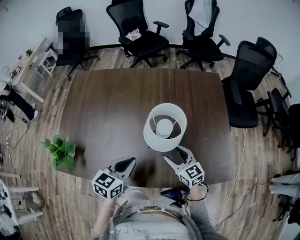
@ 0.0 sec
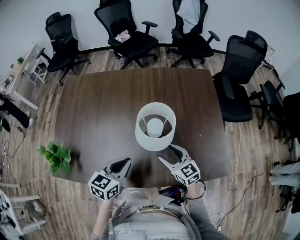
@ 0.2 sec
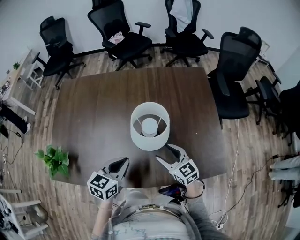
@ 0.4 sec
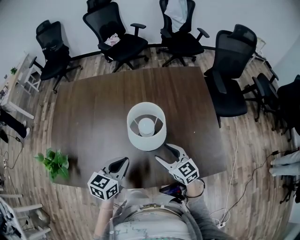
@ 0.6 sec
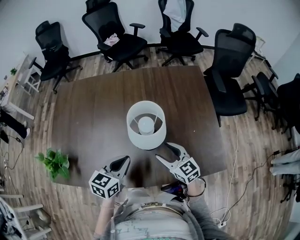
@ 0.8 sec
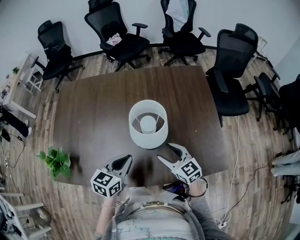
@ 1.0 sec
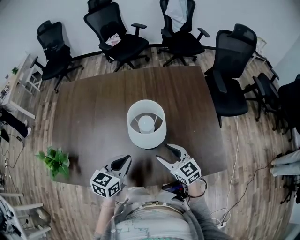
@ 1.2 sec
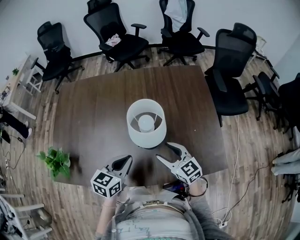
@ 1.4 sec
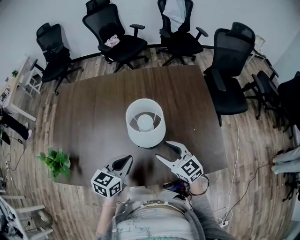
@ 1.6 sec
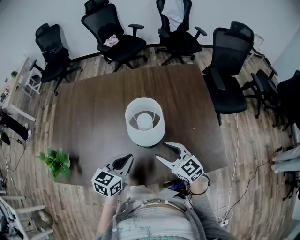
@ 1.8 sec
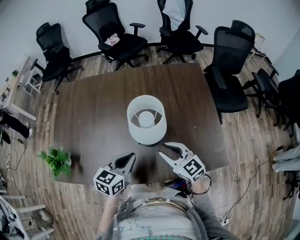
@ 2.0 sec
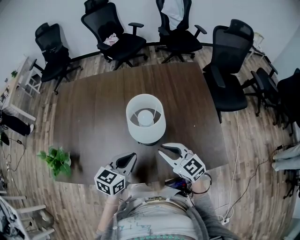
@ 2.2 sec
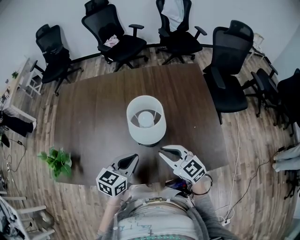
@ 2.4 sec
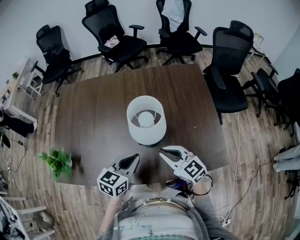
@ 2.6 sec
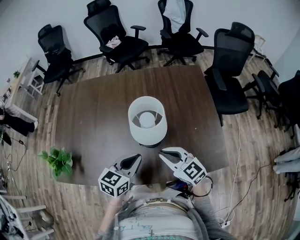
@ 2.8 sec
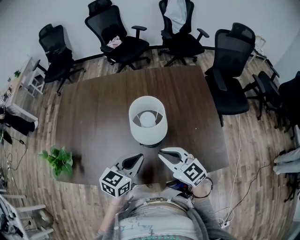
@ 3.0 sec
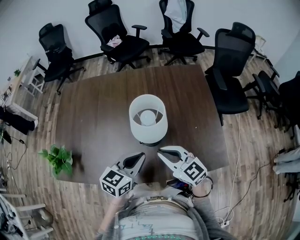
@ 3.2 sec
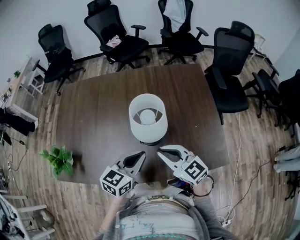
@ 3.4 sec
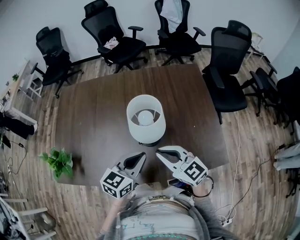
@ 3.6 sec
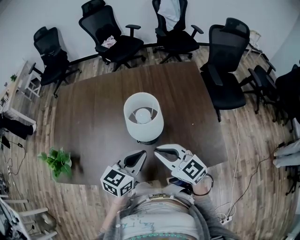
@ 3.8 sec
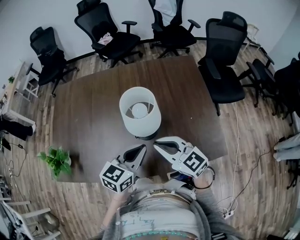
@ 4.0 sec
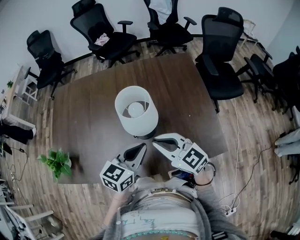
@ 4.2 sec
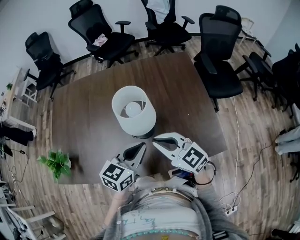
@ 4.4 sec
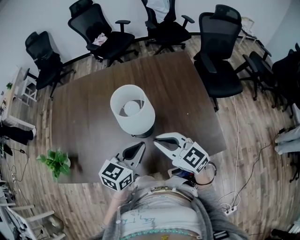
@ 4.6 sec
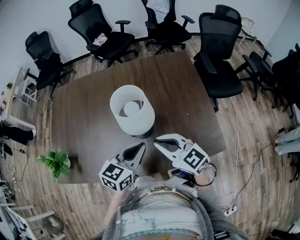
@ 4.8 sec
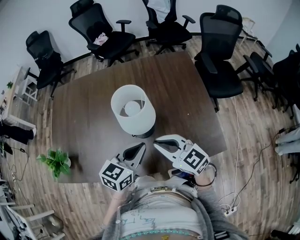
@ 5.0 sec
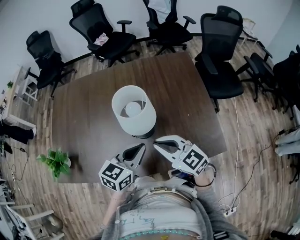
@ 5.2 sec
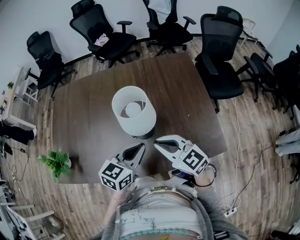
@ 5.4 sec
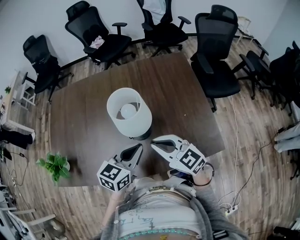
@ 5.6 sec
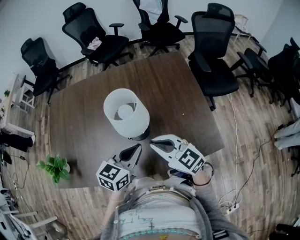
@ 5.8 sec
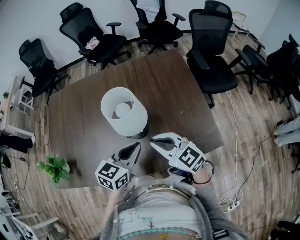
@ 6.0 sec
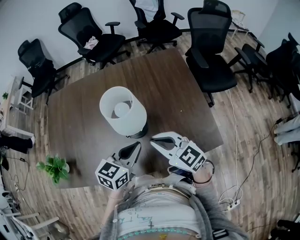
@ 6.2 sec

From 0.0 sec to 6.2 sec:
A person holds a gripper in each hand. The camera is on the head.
From 0.0 sec to 1.6 sec: The right gripper is displaced upward by some 5 cm.
From 1.6 sec to 3.2 sec: The left gripper ends up about 5 cm from where it was, while the right gripper goes some 5 cm upward, and closes its fingers.
From 3.2 sec to 4.6 sec: There are only small adjustments of the grippers.
From 4.6 sec to 6.2 sec: Neither gripper changes place.

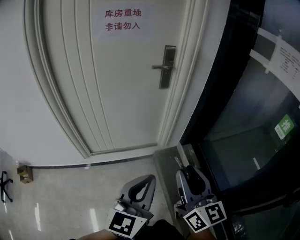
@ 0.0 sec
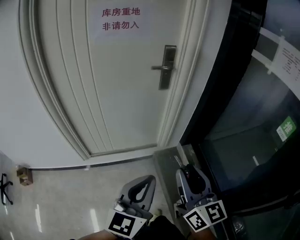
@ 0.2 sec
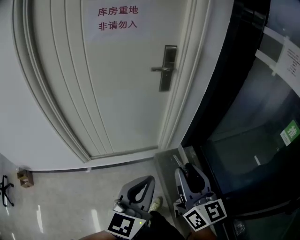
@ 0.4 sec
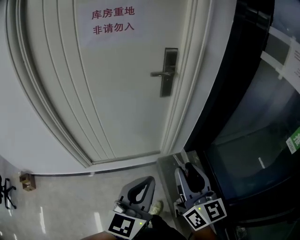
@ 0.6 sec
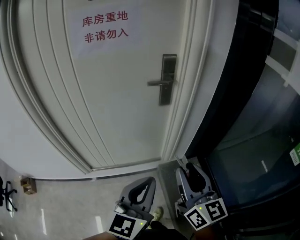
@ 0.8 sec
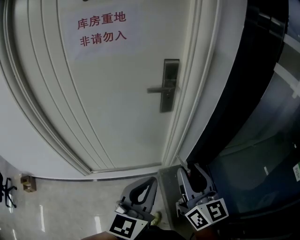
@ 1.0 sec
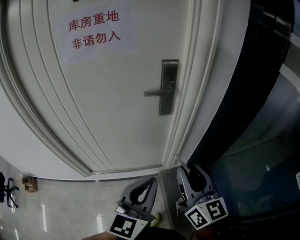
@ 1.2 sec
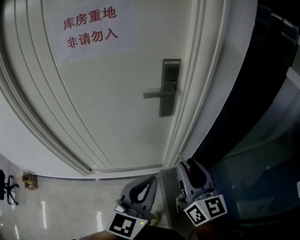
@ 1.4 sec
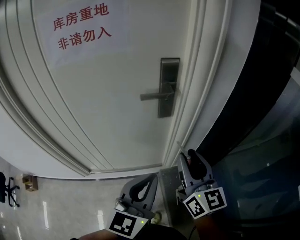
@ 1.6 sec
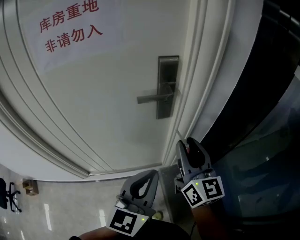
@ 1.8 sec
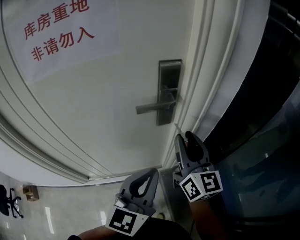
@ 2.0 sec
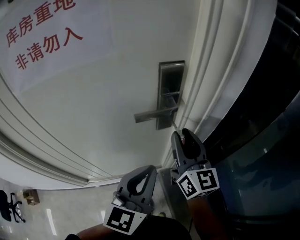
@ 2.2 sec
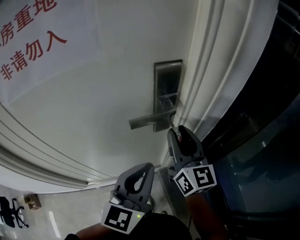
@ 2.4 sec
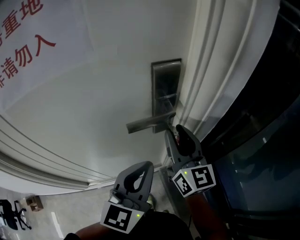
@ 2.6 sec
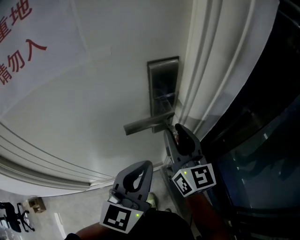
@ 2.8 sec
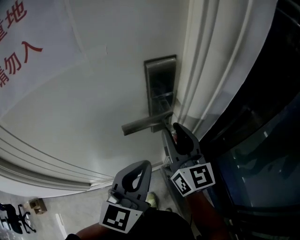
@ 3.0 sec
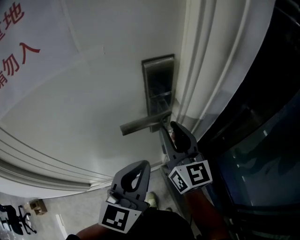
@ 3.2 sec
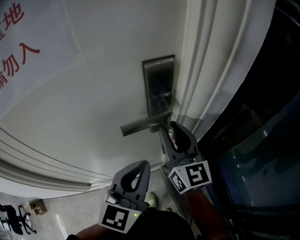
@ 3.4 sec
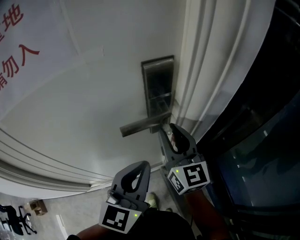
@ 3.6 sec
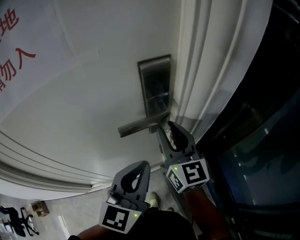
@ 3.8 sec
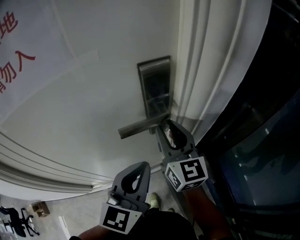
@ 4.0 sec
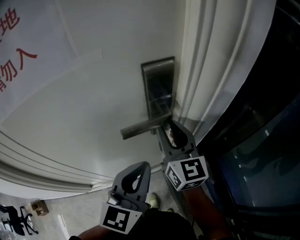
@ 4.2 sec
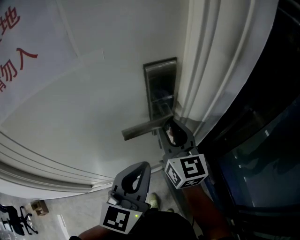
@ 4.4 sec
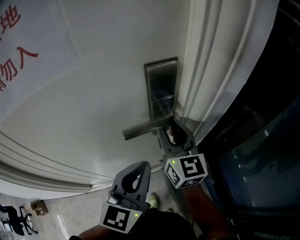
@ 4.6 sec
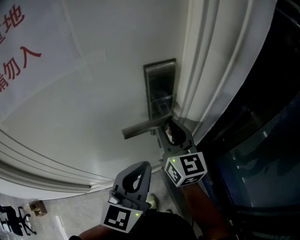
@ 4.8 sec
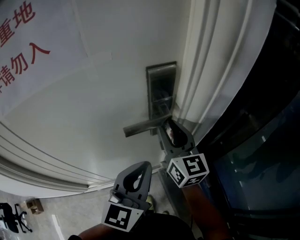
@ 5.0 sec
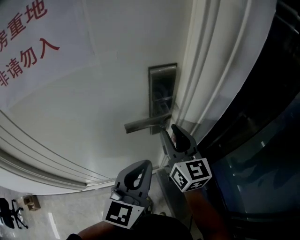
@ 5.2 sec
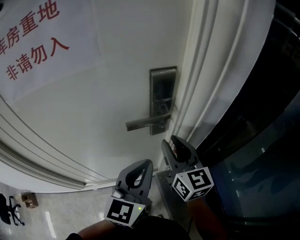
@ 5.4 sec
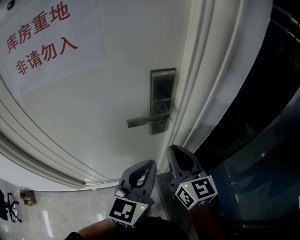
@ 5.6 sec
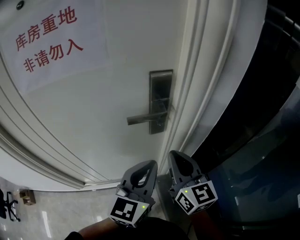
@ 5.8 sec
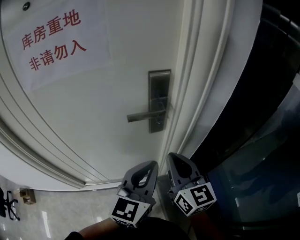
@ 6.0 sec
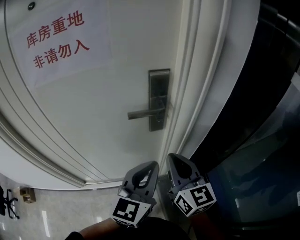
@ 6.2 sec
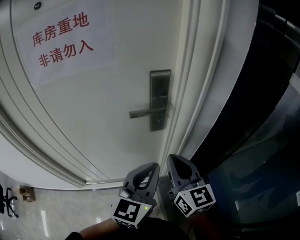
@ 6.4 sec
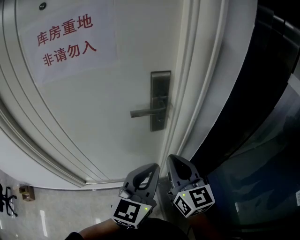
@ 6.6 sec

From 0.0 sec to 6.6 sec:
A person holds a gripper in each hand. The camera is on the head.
From 0.0 sec to 1.6 sec: Both grippers move forward, some 35 cm.
From 1.6 sec to 3.2 sec: The grippers both shift forward by about 20 cm.
From 3.2 sec to 5.0 sec: The grippers move only a little.
From 5.0 sec to 6.6 sec: The left gripper is displaced backward by roughly 10 cm. The right gripper travels backward by approximately 20 cm, and closes its fingers.

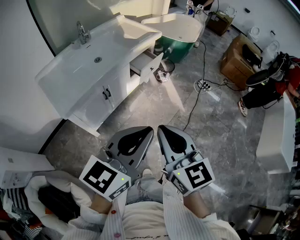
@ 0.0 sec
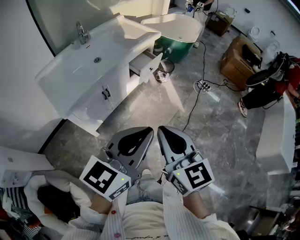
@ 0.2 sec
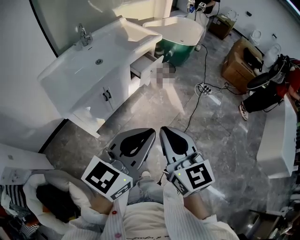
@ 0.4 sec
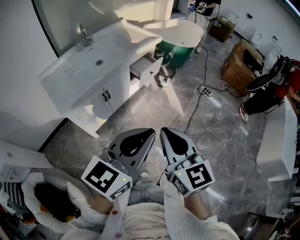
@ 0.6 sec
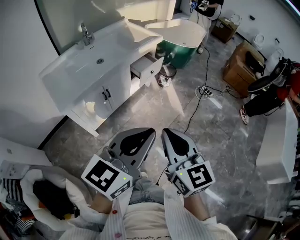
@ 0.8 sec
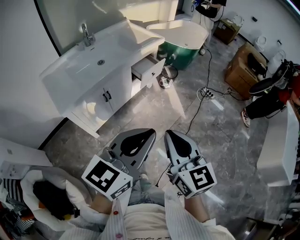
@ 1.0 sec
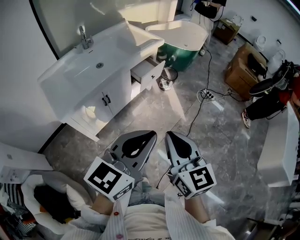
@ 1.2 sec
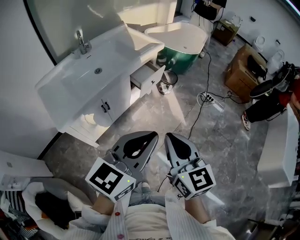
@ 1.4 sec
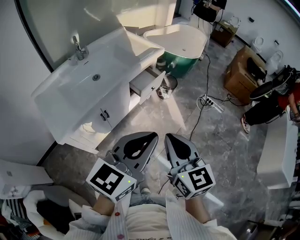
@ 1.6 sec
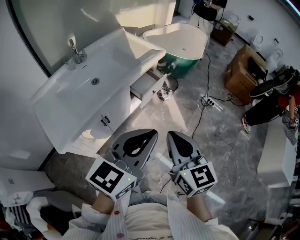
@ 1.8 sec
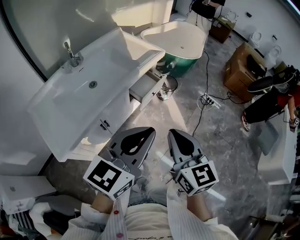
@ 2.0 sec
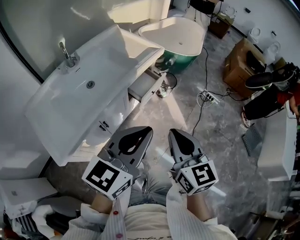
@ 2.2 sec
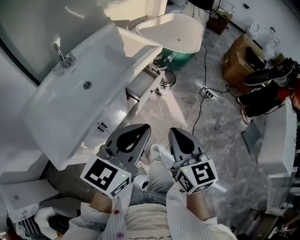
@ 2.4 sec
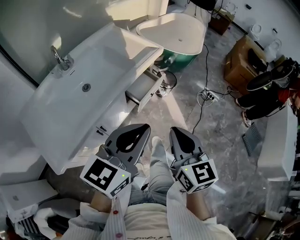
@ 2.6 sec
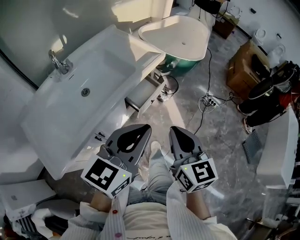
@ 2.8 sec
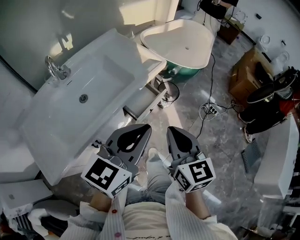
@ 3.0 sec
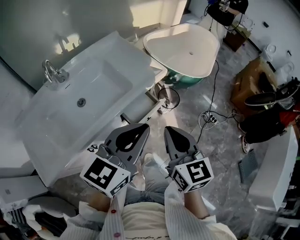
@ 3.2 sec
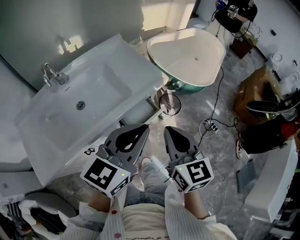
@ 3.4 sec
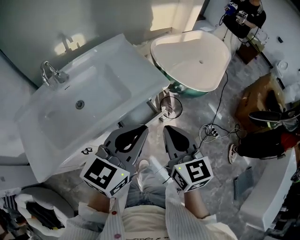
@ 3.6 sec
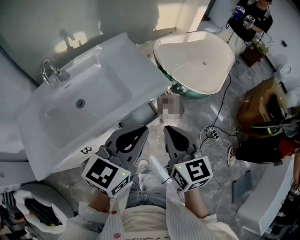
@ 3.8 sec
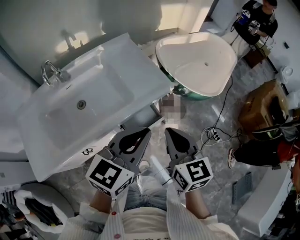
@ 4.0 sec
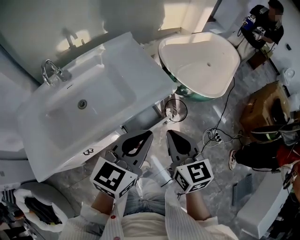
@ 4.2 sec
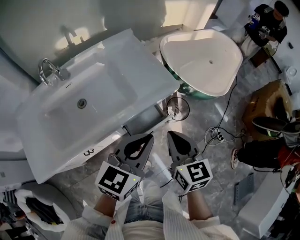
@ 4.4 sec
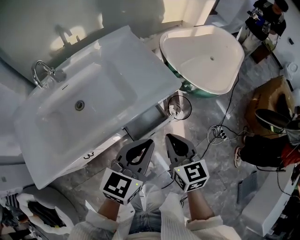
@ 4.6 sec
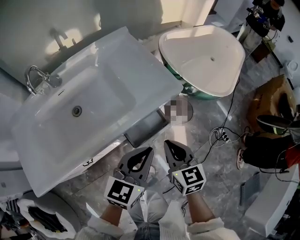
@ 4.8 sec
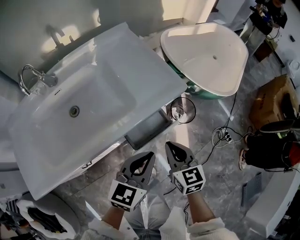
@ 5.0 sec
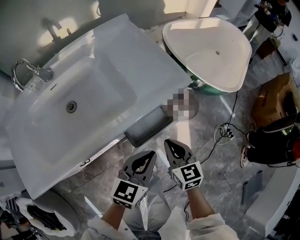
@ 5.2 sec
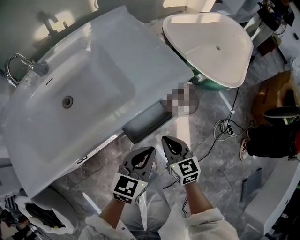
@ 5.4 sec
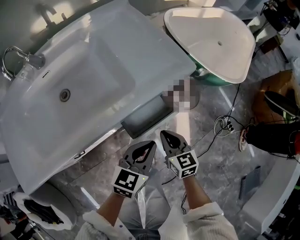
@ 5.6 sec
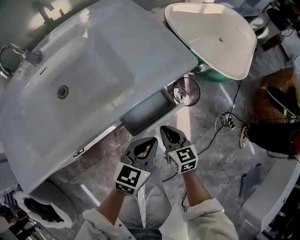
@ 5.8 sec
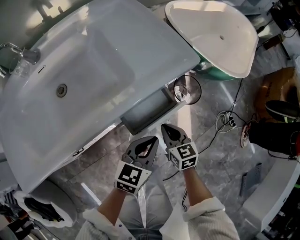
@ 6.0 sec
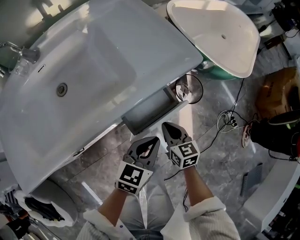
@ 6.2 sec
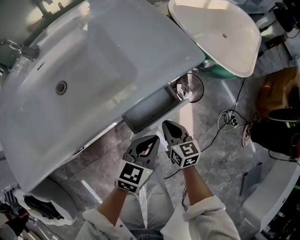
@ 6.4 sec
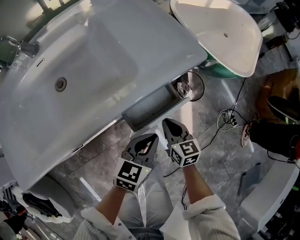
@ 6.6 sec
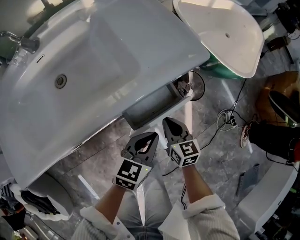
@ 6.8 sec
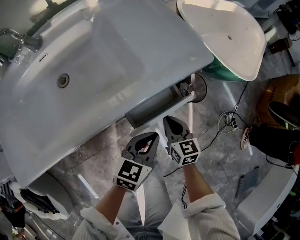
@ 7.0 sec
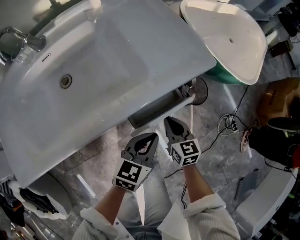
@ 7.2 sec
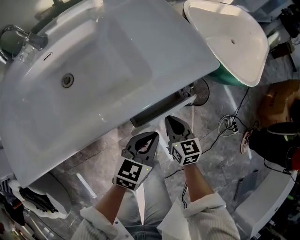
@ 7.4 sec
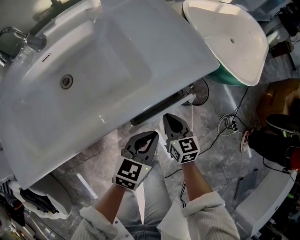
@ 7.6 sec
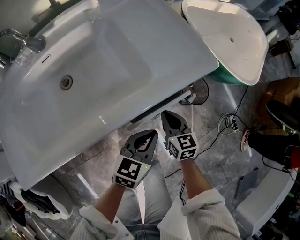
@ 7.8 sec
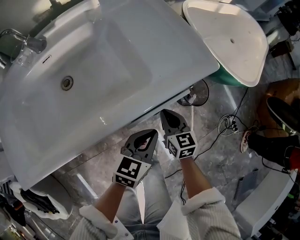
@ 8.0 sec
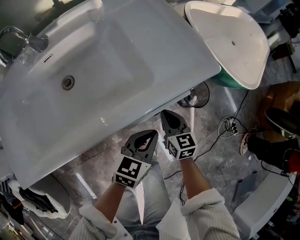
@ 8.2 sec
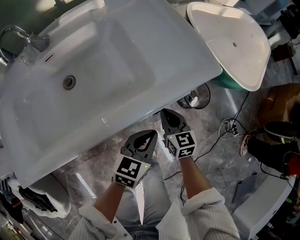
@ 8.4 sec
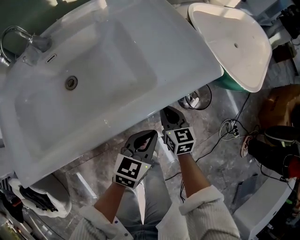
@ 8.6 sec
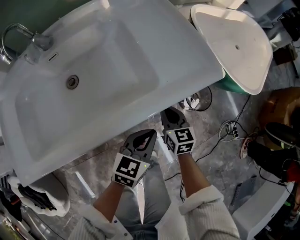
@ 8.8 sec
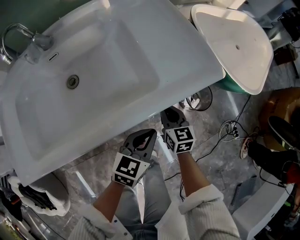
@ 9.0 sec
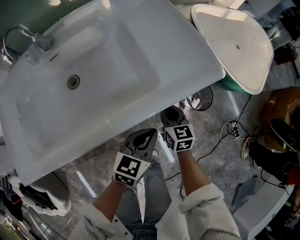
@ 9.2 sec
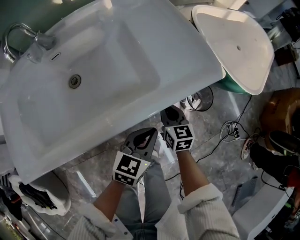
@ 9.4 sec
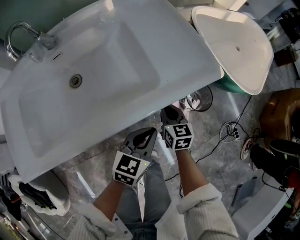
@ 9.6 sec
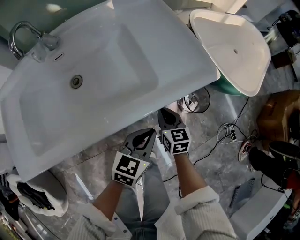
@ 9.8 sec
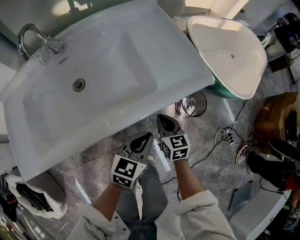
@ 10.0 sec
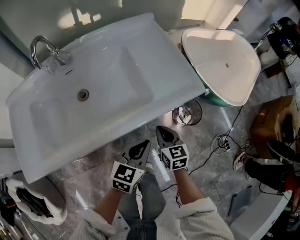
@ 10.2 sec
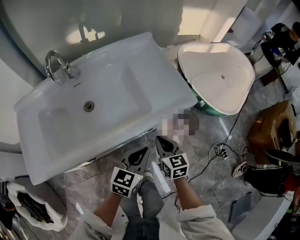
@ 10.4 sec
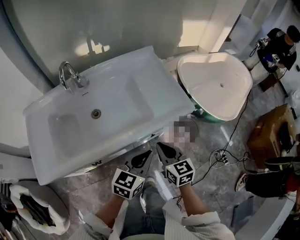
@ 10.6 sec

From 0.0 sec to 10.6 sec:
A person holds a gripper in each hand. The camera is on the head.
From 0.0 sec to 1.6 sec: Both grippers move forward, some 15 cm.
From 1.6 sec to 3.0 sec: Both grippers travel together forward, approximately 25 cm.
From 3.0 sec to 4.6 sec: The grippers both shift forward and downward by approximately 20 cm. The left gripper rotates some 20 degrees.
From 4.6 sec to 6.0 sec: Both grippers move downward, about 25 cm.
From 6.0 sec to 7.6 sec: The right gripper shifts by some 5 cm.
From 7.6 sec to 9.0 sec: The right gripper shifts approximately 5 cm forward.
From 9.0 sec to 10.6 sec: The left gripper goes some 15 cm upward. Meanwhile the right gripper travels upward and backward by about 25 cm.
